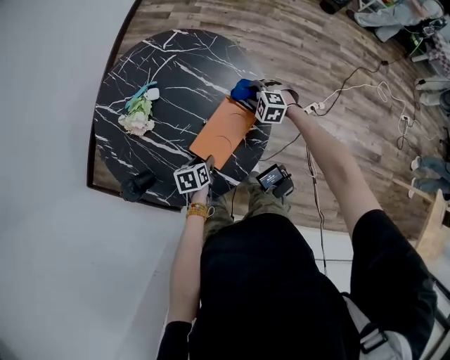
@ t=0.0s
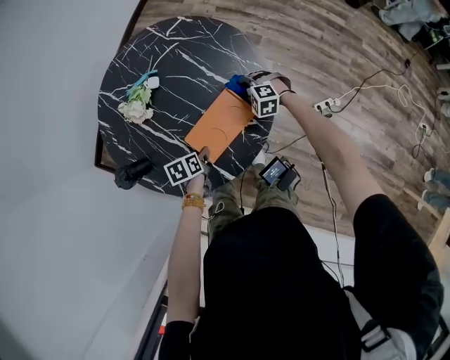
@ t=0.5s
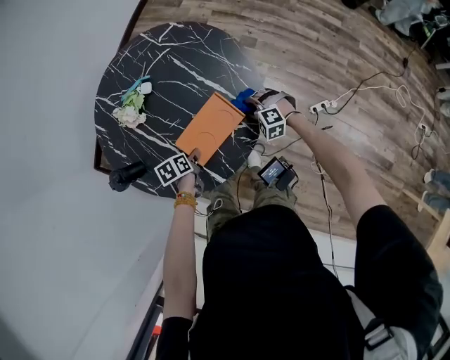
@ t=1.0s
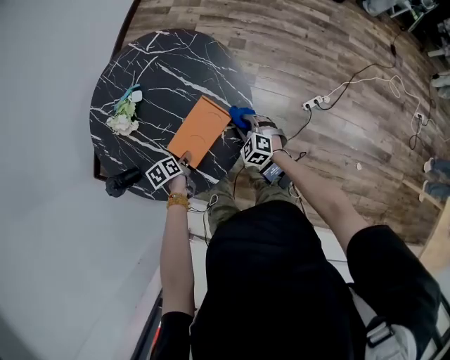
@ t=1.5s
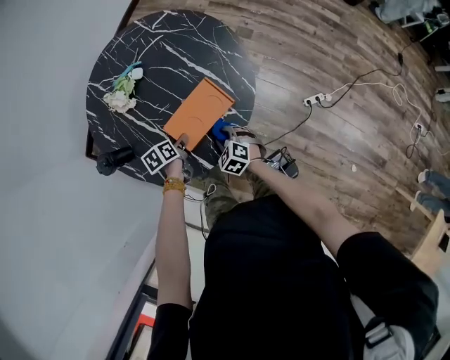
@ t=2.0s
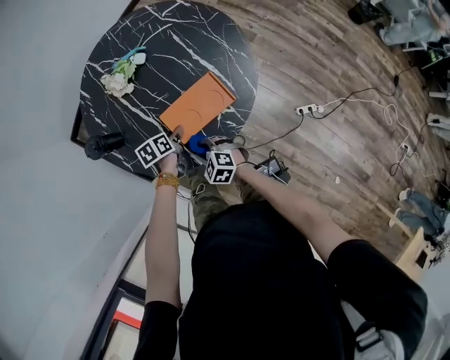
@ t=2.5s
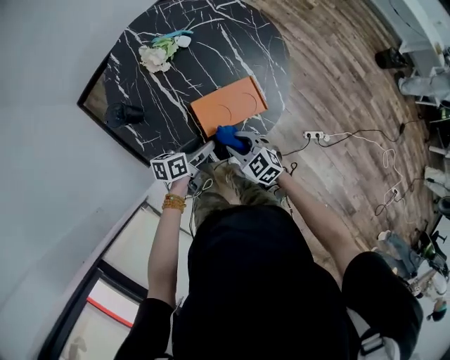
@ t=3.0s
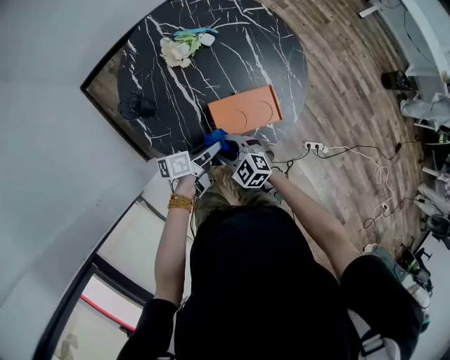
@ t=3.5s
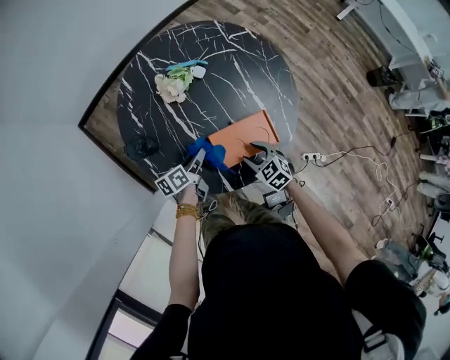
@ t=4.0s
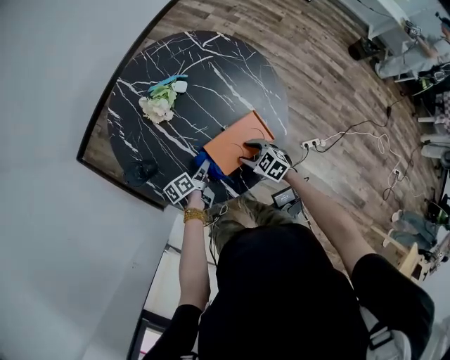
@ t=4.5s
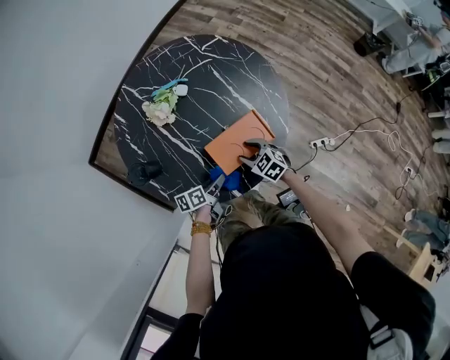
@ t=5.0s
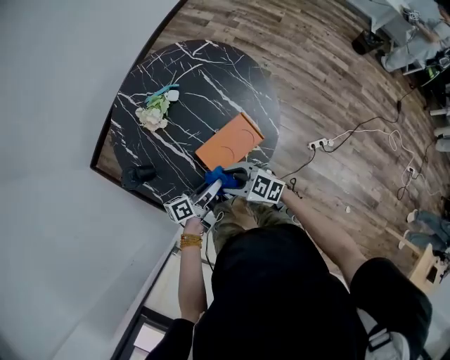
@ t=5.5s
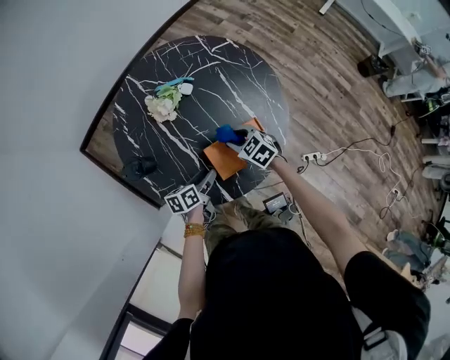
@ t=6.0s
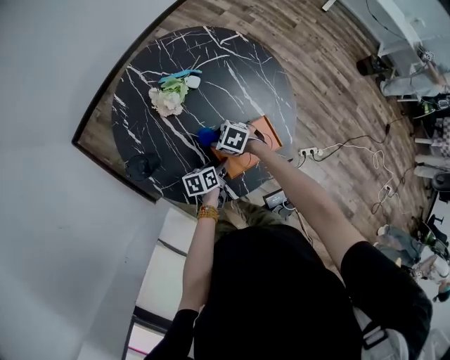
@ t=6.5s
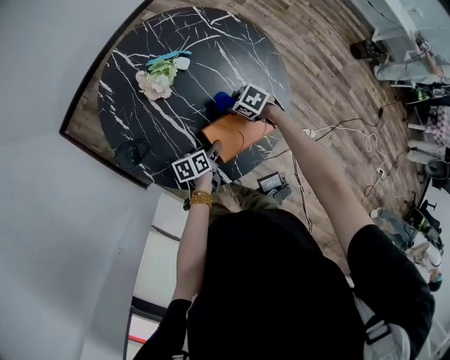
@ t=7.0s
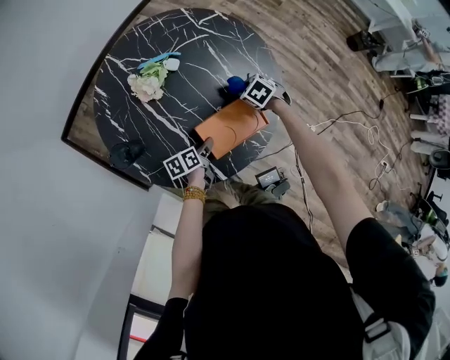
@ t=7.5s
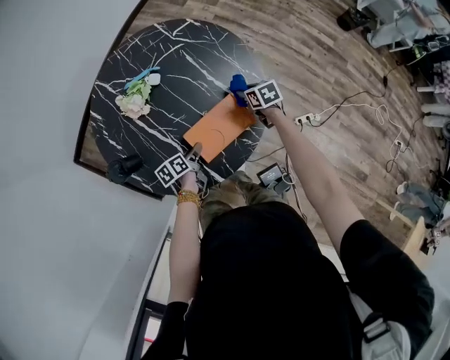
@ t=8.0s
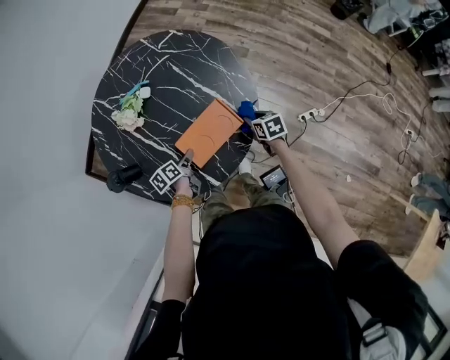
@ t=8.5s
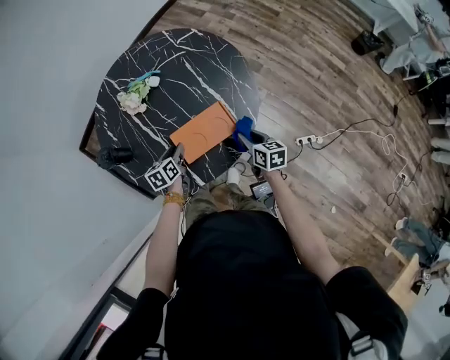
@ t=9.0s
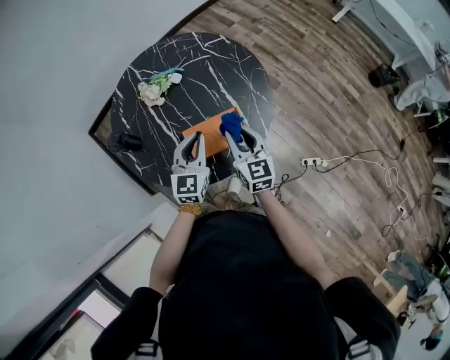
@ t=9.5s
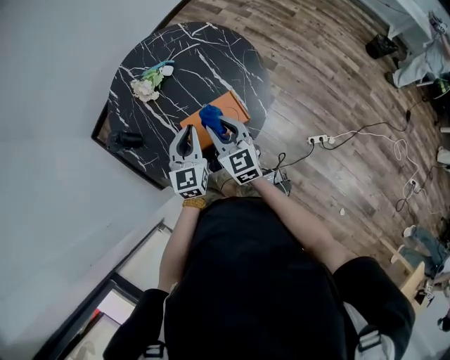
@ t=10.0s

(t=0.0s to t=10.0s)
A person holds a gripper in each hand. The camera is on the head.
t=0.0s - t=2.0s: The right gripper moves backward, some 20 cm, and rotates roughly 20 degrees. The left gripper rotates about 30 degrees.
t=2.0s - t=4.0s: The left gripper shifts about 10 cm to the left, reaches some 5 cm backward, then returns, and tips its fingers upward by roughly 30 degrees, while the right gripper moves left and right over approximately 15 cm, changing direction 3 times.
t=4.0s - t=6.0s: The left gripper goes up and down, about 15 cm each way, reversing 2 times. The right gripper changes place by approximately 10 cm.
t=6.0s - t=8.0s: The right gripper moves about 20 cm, and twists some 40 degrees clockwise, seen from behind; the left gripper heads downward, covering about 5 cm.
t=8.0s - t=10.0s: The left gripper goes about 25 cm upward, rotates roughly 70 degrees, and closes. Meanwhile the right gripper moves upward, backward and to the left, about 25 cm, and points its fingers about 40 degrees further upward.

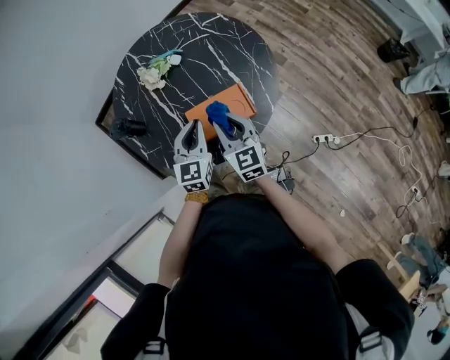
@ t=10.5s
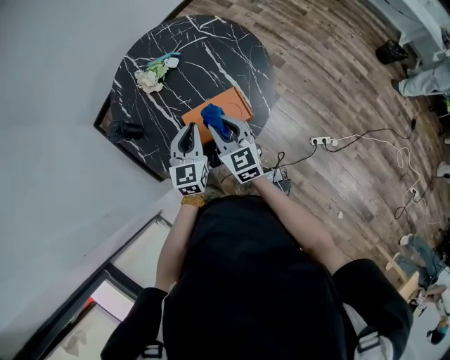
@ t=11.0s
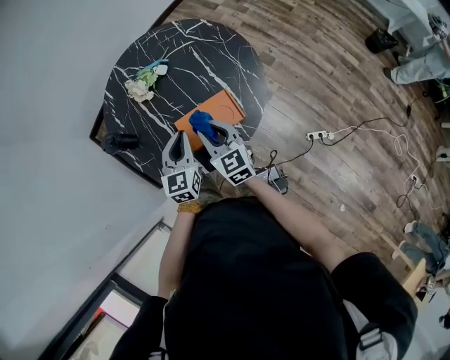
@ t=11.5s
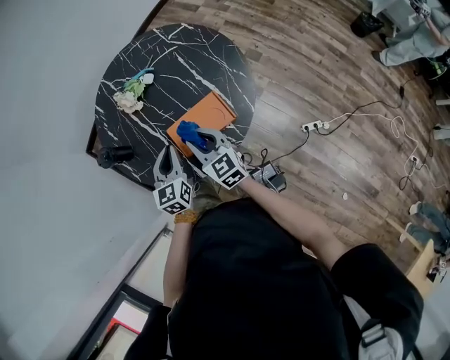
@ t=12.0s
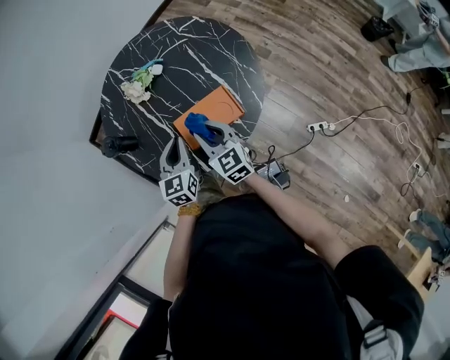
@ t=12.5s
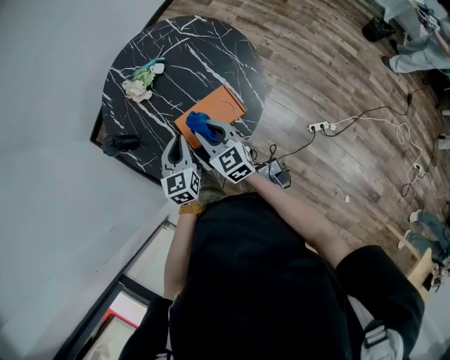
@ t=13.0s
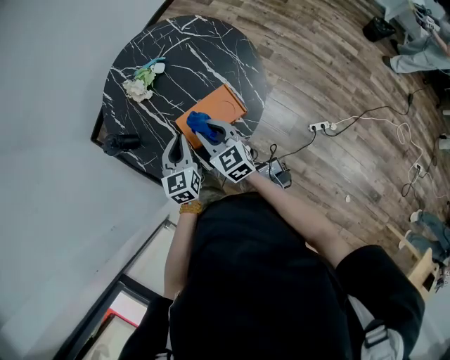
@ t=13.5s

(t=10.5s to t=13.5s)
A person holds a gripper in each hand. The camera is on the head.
t=10.5s - t=12.0s: There are only small adjustments of the grippers.
t=12.0s - t=13.5s: Both grippers stay put.

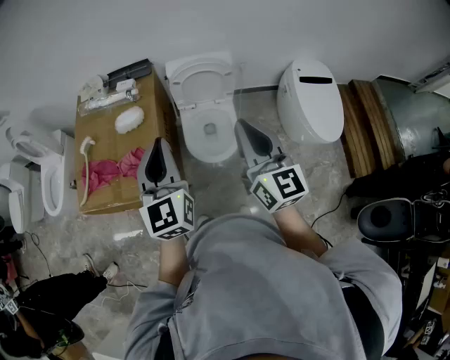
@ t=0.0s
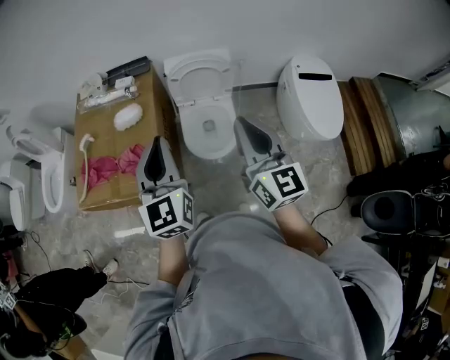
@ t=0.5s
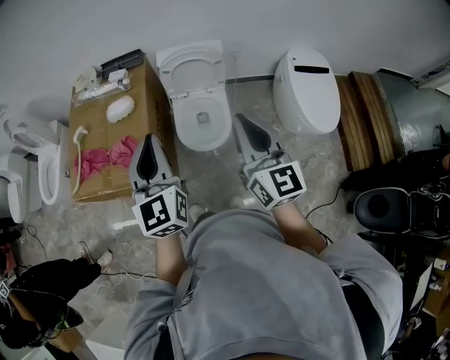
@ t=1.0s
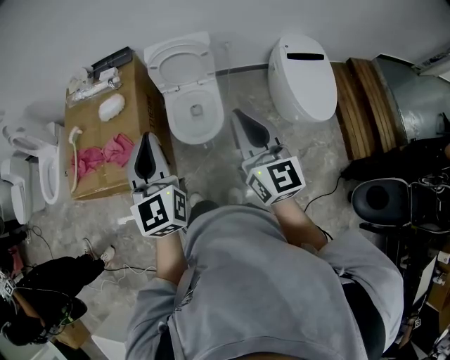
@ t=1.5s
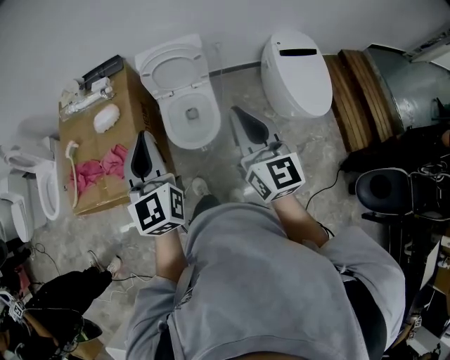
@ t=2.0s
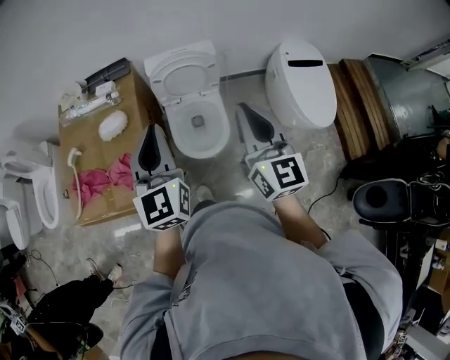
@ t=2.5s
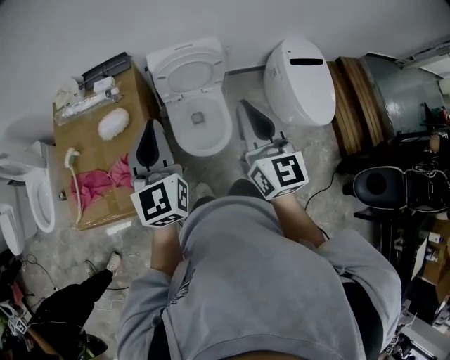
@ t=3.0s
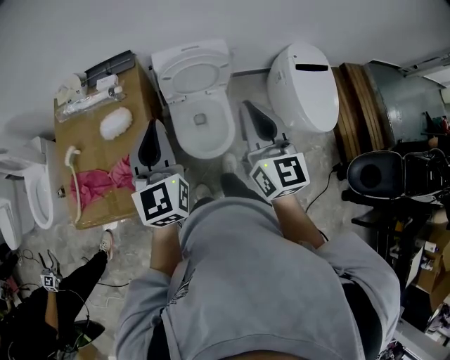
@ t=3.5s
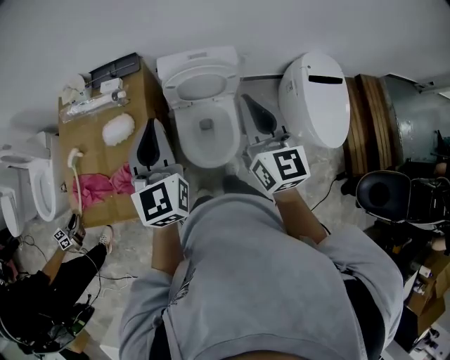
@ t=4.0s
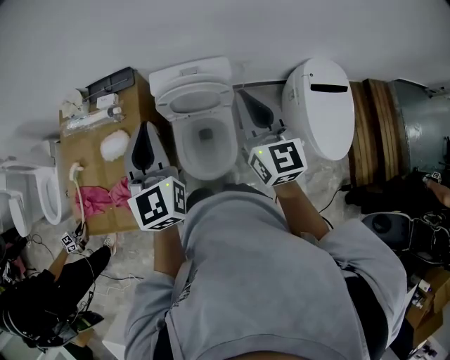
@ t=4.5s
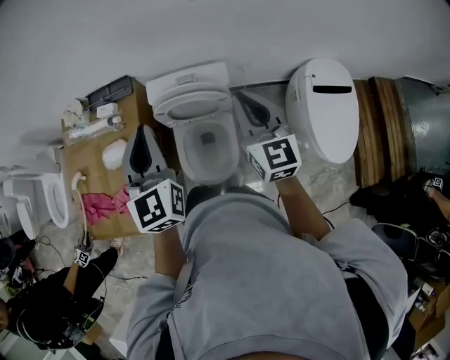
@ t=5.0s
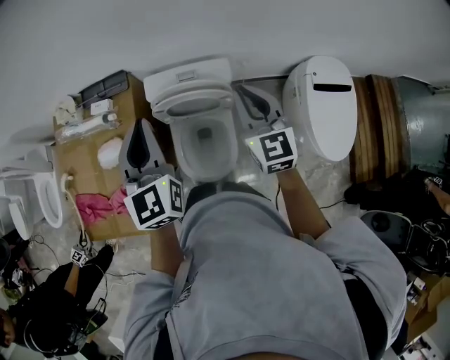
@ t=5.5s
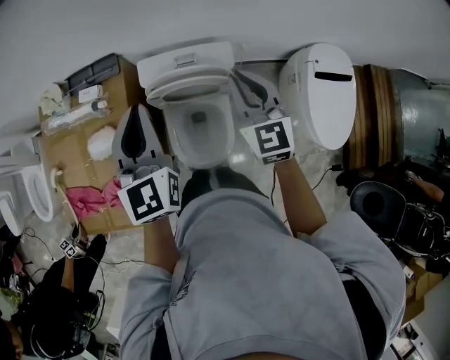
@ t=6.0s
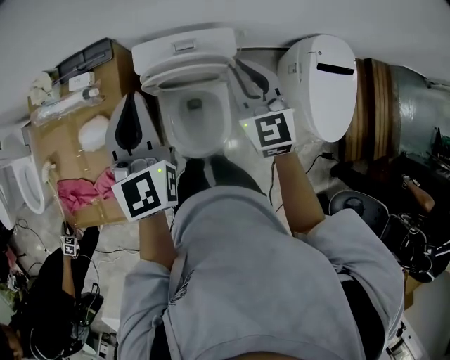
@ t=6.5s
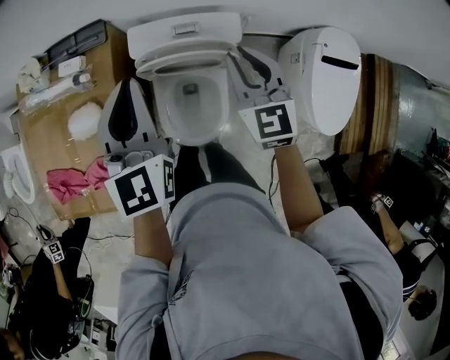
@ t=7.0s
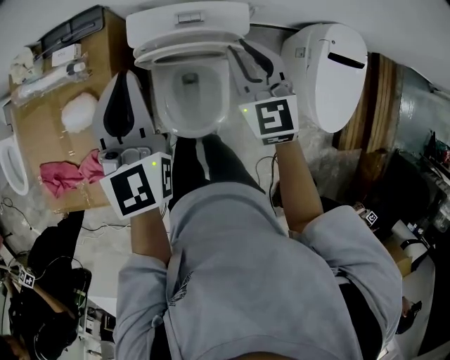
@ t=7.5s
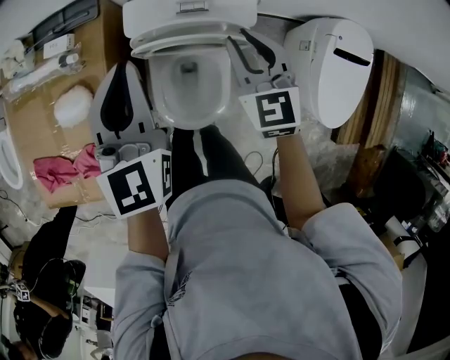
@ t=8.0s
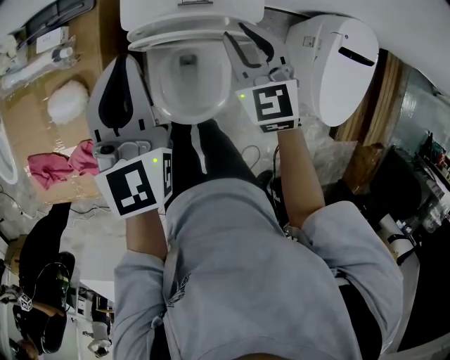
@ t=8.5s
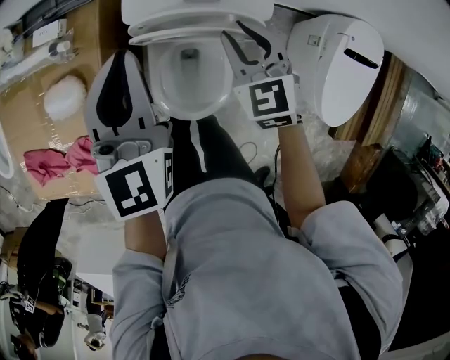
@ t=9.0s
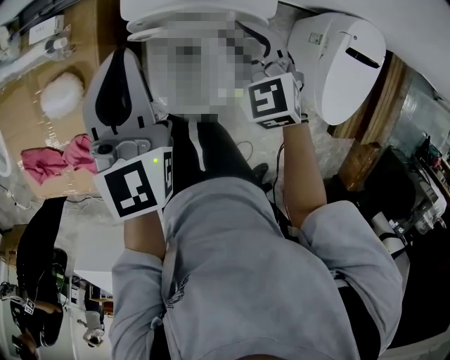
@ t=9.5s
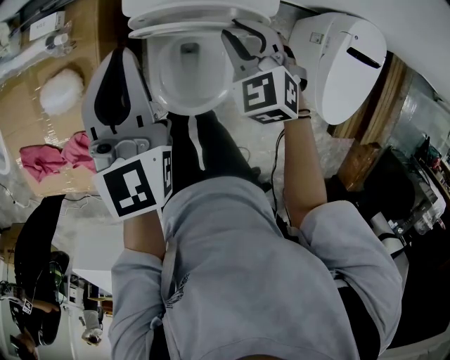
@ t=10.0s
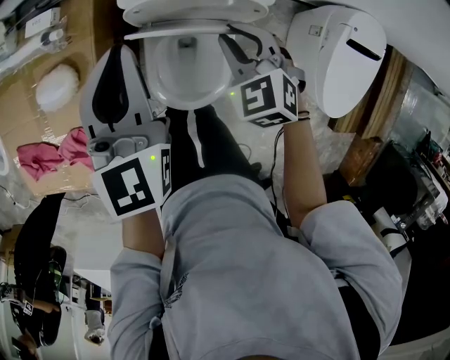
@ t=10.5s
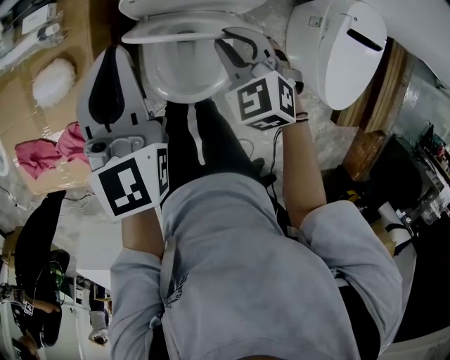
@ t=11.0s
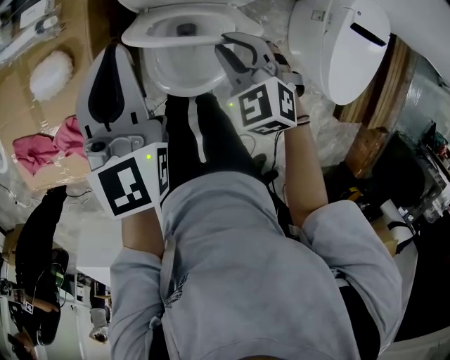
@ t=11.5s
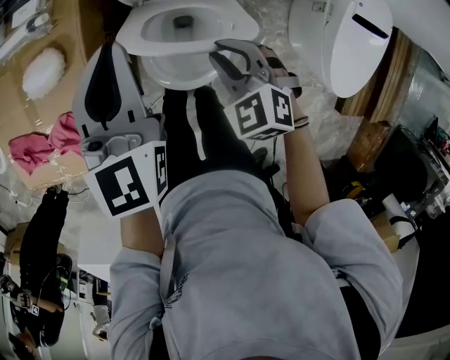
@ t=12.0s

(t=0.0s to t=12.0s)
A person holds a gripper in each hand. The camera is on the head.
t=0.0s - t=2.0s: The two grippers go about 10 cm to the right.
t=2.0s - t=4.0s: Both grippers move forward, approximately 25 cm.
t=4.0s - t=6.0s: The right gripper is displaced forward and downward by about 20 cm, and swivels some 20 degrees. The left gripper moves forward and to the right, roughly 15 cm.
t=6.0s - t=8.0s: The left gripper is displaced downward by some 10 cm. The right gripper moves downward and forward, about 15 cm.
t=8.0s - t=10.0s: The right gripper goes roughly 10 cm downward, and changes its angle by about 30 degrees. Meanwhile the left gripper travels downward by approximately 5 cm.
t=10.0s - t=12.0s: The right gripper travels backward by roughly 15 cm; the left gripper moves backward, about 10 cm.

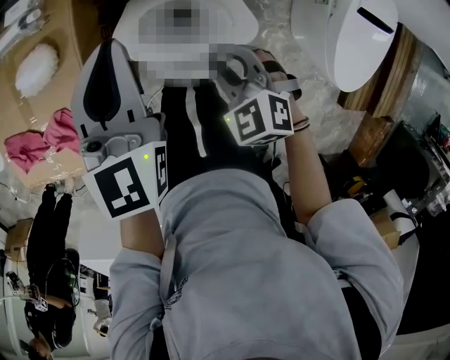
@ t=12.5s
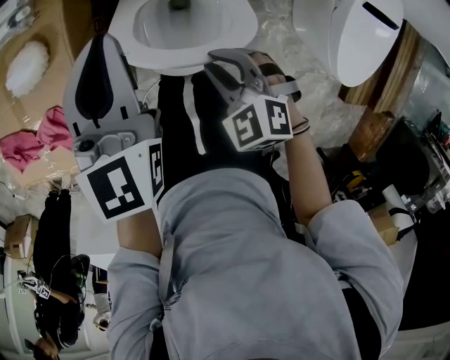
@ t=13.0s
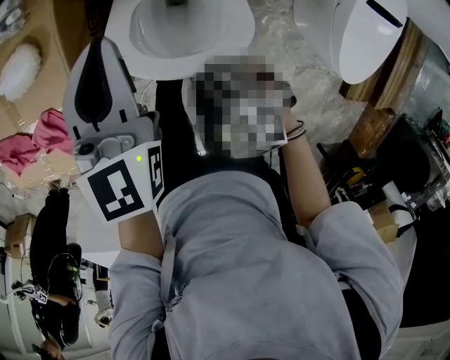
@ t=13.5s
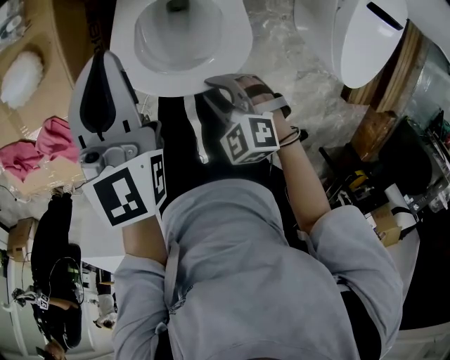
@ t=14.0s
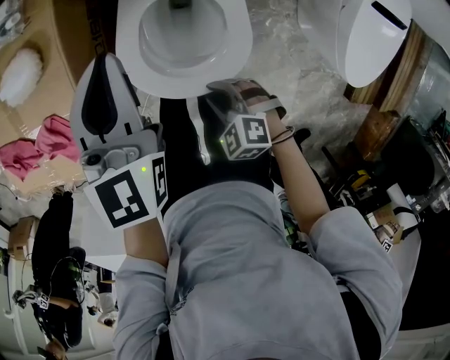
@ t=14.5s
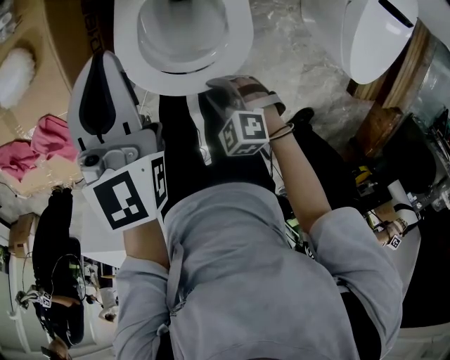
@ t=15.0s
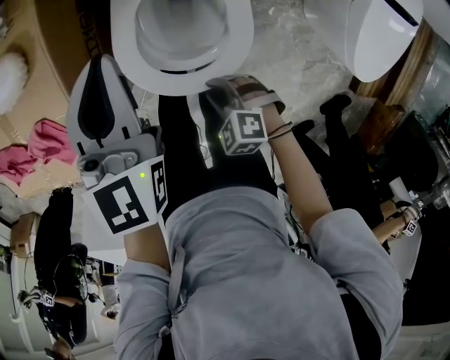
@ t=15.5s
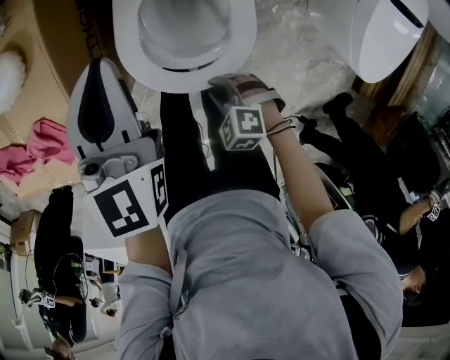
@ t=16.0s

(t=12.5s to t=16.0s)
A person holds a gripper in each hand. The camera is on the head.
t=12.5s - t=14.5s: The left gripper is displaced downward by roughly 5 cm. The right gripper shifts approximately 20 cm backward, downward and to the left.
t=14.5s - t=16.0s: The grippers both shift downward by some 5 cm.
